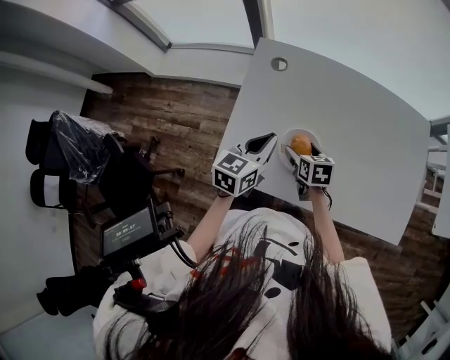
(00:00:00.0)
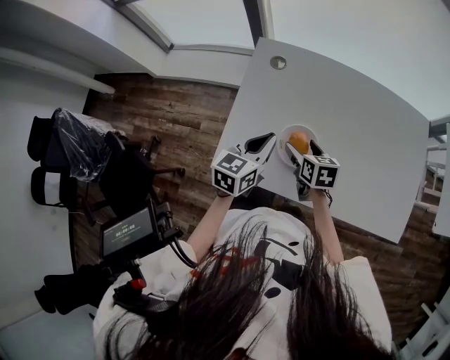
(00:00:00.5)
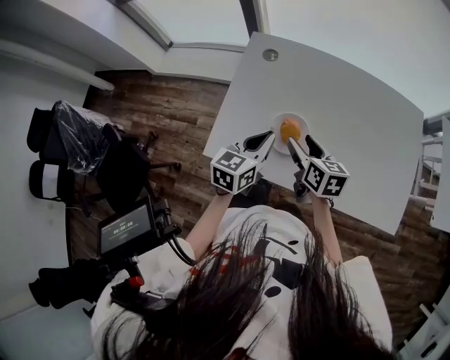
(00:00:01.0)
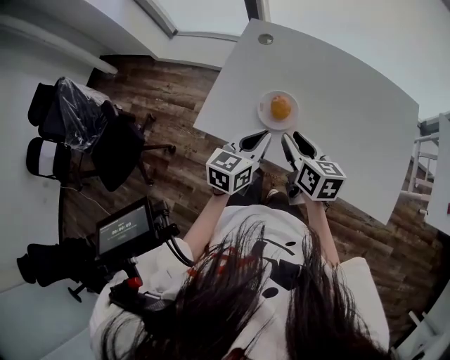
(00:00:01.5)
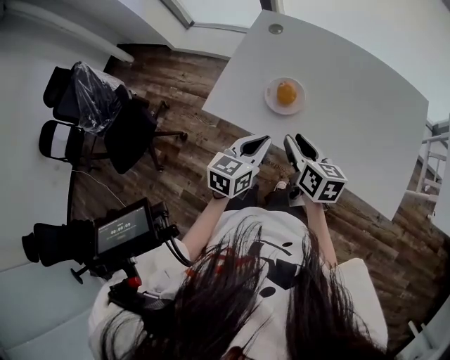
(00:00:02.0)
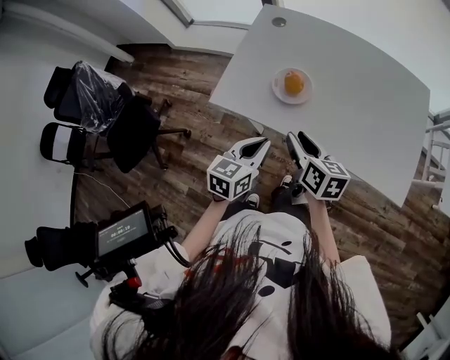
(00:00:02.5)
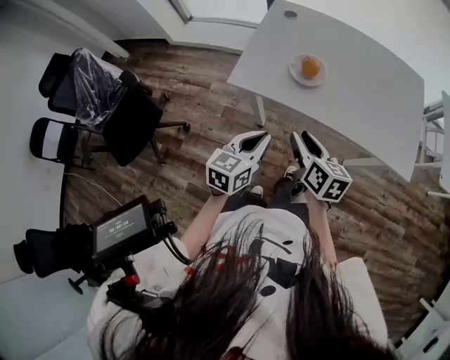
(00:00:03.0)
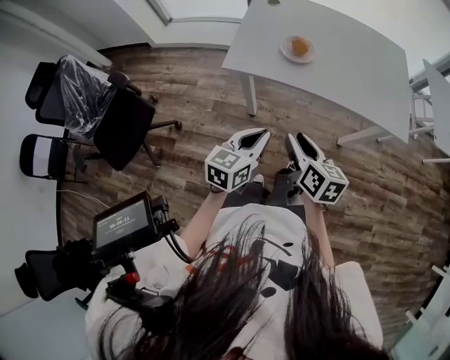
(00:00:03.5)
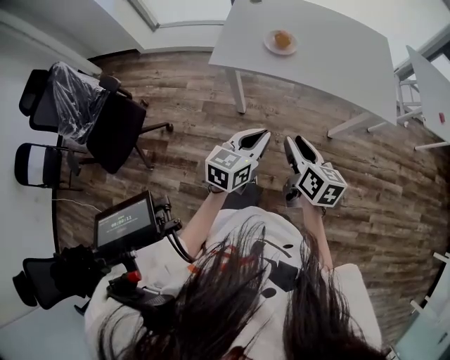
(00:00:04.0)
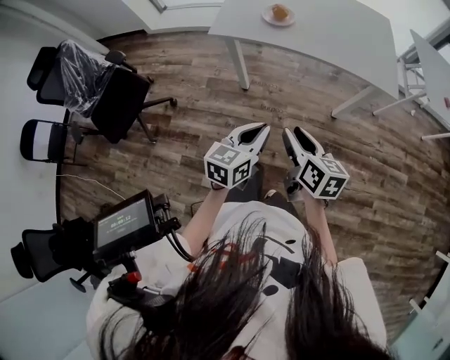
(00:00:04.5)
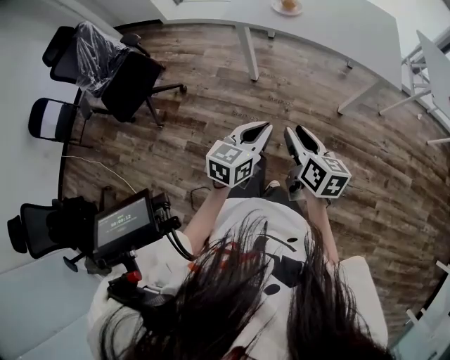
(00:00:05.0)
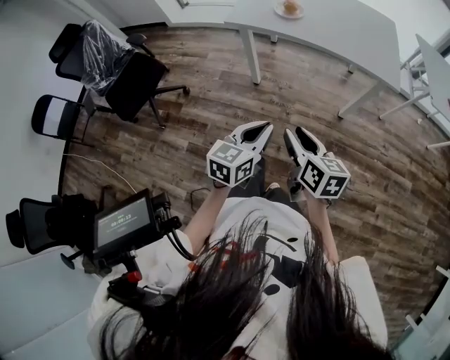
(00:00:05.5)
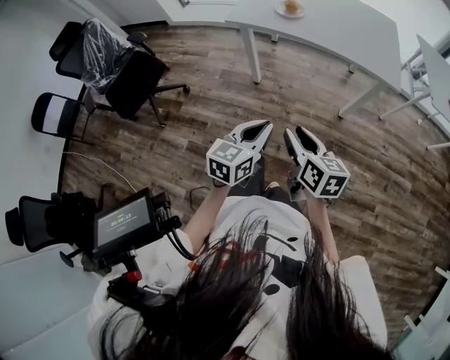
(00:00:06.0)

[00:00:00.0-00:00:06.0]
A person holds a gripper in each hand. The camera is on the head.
00:00:00.0 to 00:00:02.0: The right gripper shifts some 20 cm backward and upward, turns by approximately 30 degrees, and closes its fingers. The left gripper travels backward by approximately 20 cm.
00:00:02.0 to 00:00:04.0: The two grippers go roughly 30 cm backward.
00:00:04.0 to 00:00:06.0: Both grippers move backward, approximately 20 cm.

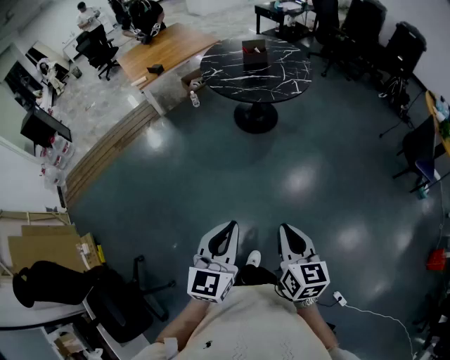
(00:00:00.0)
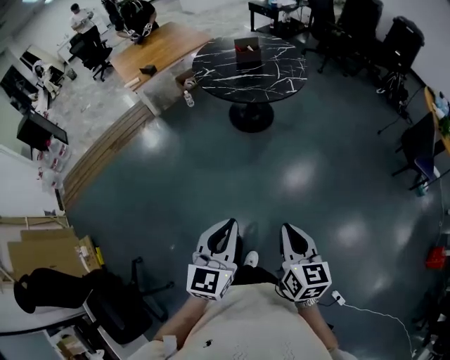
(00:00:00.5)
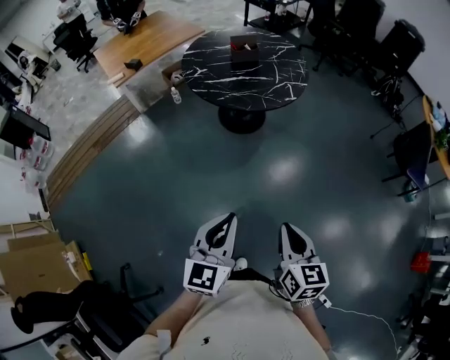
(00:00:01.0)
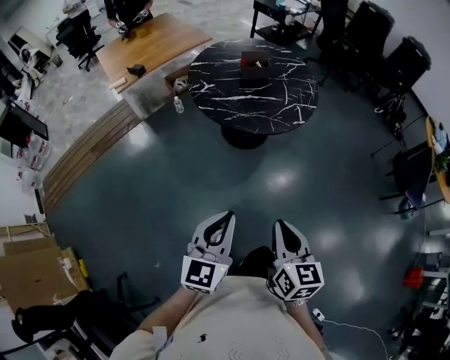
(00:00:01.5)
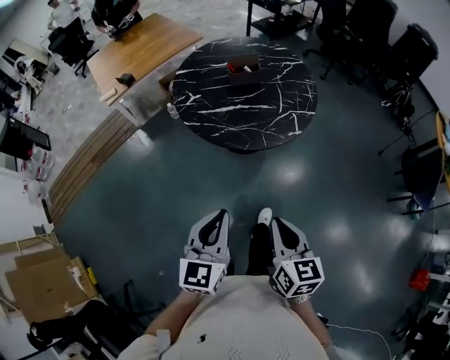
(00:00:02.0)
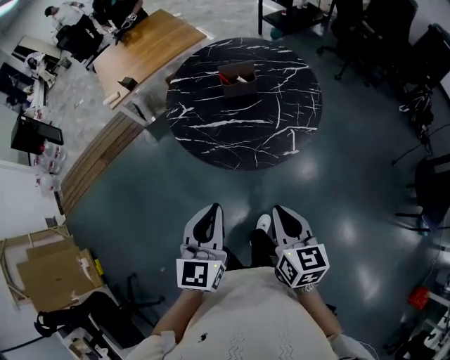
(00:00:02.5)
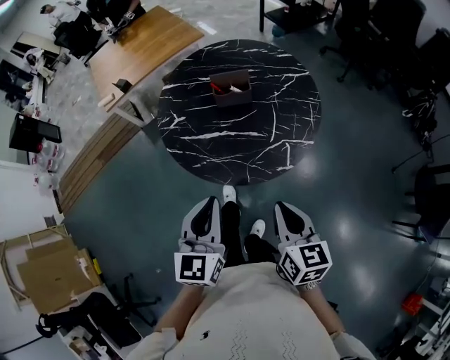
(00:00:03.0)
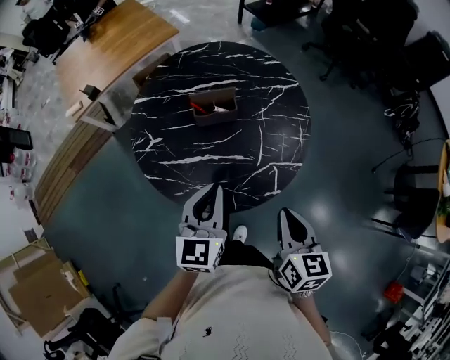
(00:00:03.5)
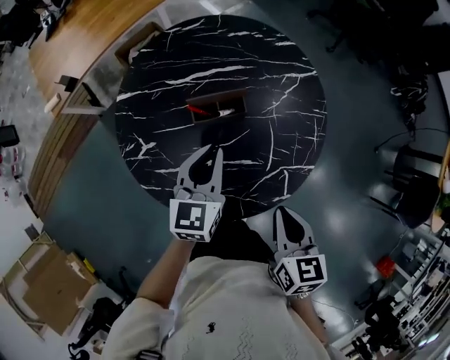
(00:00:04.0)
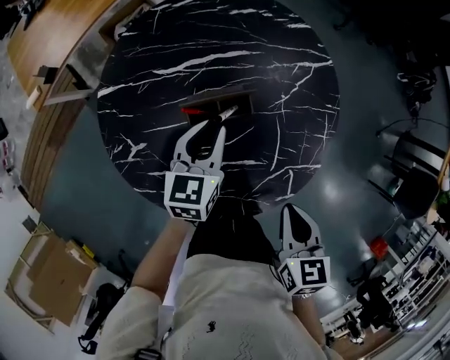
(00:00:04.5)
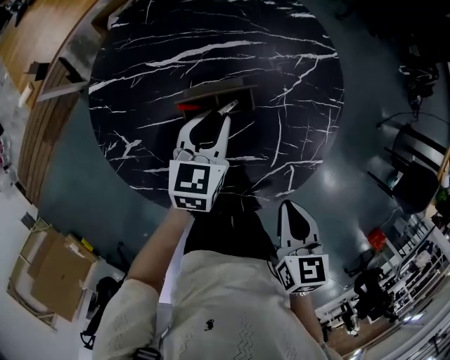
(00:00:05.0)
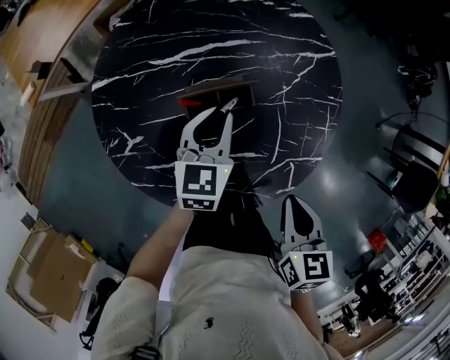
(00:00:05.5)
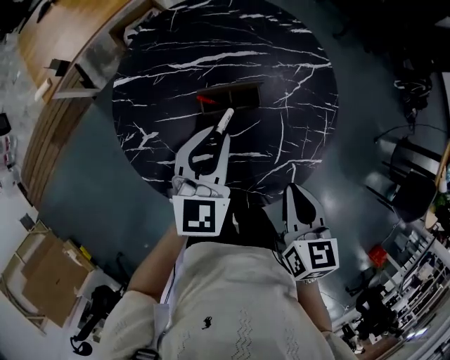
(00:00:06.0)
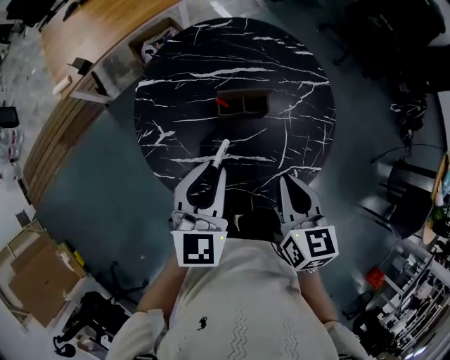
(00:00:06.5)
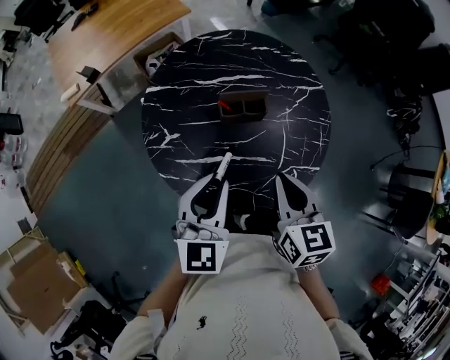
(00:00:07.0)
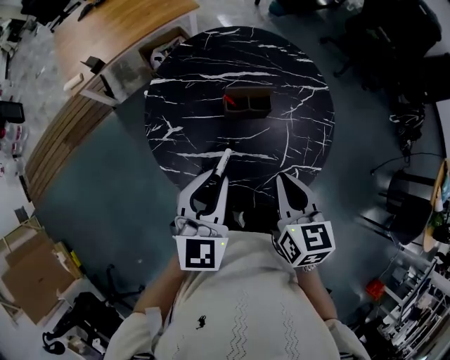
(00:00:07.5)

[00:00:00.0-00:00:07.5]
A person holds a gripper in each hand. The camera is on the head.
00:00:00.0 to 00:00:02.0: Both grippers are carried forward, approximately 40 cm.
00:00:02.0 to 00:00:04.0: The pair of grippers is taken forward, roughly 50 cm.
00:00:04.0 to 00:00:05.5: The left gripper travels downward and forward by roughly 15 cm. The right gripper is displaced forward and downward by about 5 cm.
00:00:05.5 to 00:00:07.5: The right gripper shifts some 15 cm upward and to the left, and swivels some 20 degrees. The left gripper travels backward, upward and to the left by roughly 30 cm, and turns by some 30 degrees.

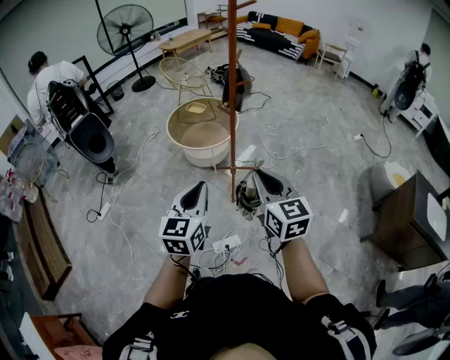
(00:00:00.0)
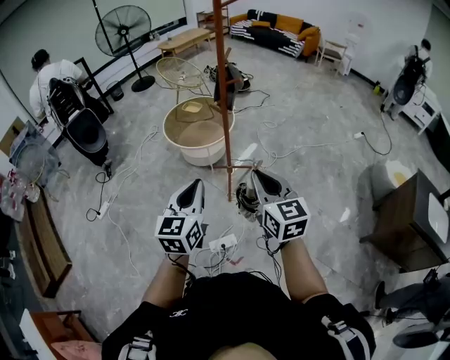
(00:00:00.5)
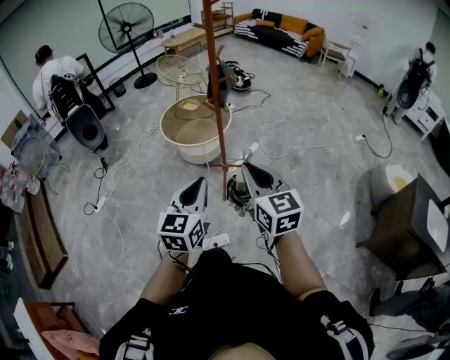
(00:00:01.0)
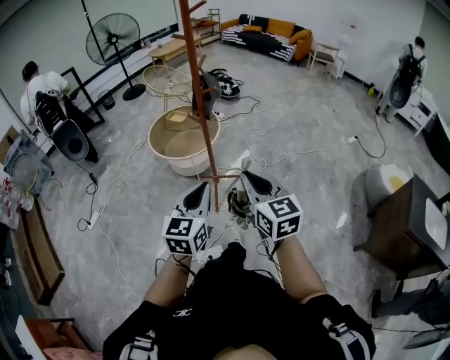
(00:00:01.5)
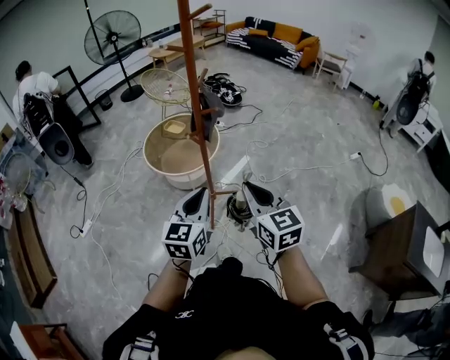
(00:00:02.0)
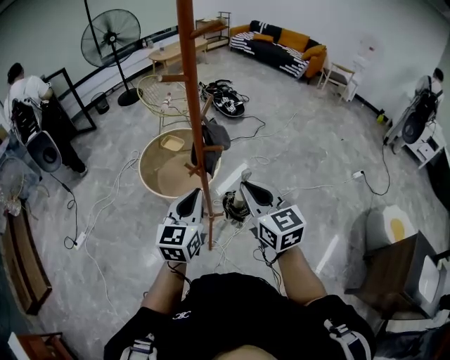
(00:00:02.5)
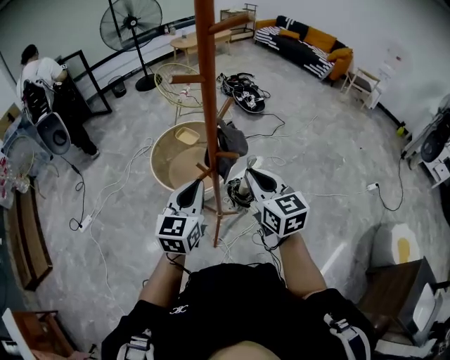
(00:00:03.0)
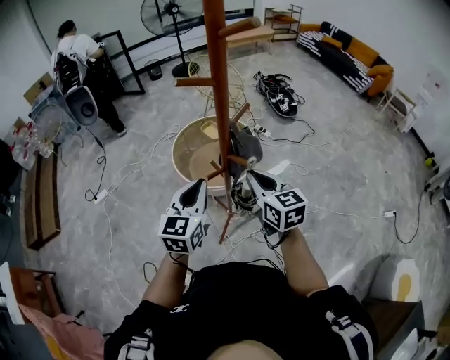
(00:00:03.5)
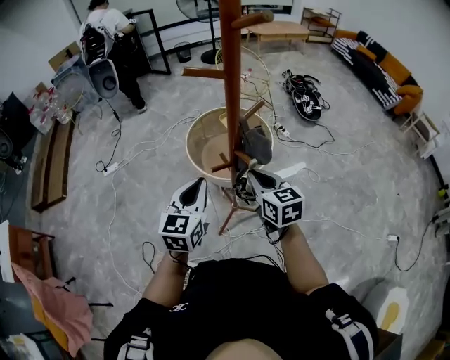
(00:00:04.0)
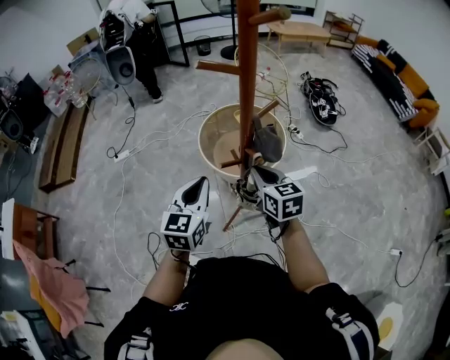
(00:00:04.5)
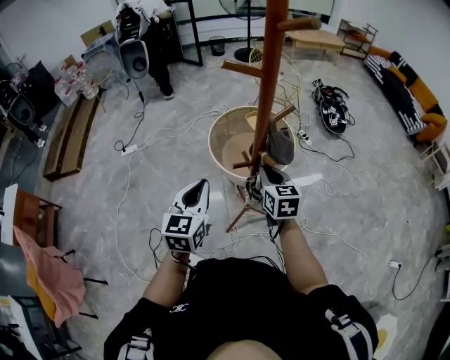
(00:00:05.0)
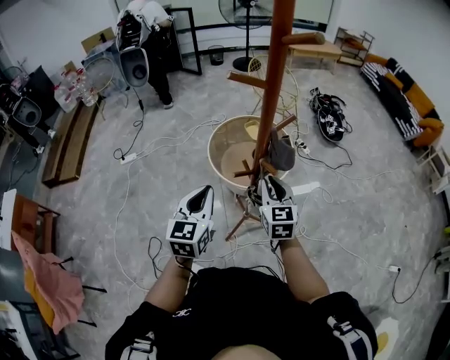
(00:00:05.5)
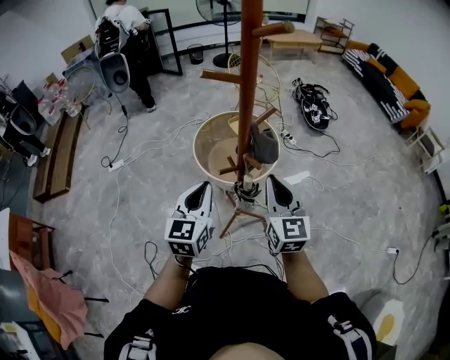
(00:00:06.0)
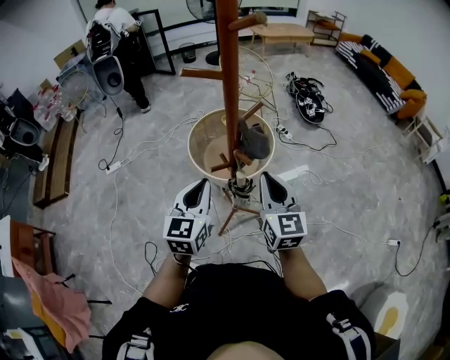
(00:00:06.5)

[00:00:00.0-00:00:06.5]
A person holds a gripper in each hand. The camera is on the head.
00:00:00.0 to 00:00:02.0: Both grippers move forward and to the right, roughly 30 cm.
00:00:02.0 to 00:00:04.5: The left gripper moves about 30 cm, and changes its angle by some 40 degrees; the right gripper ends up about 40 cm from where it was, and turns by approximately 40 degrees.
00:00:04.5 to 00:00:06.5: The right gripper goes some 10 cm upward, backward and to the right, and changes its angle by some 30 degrees.

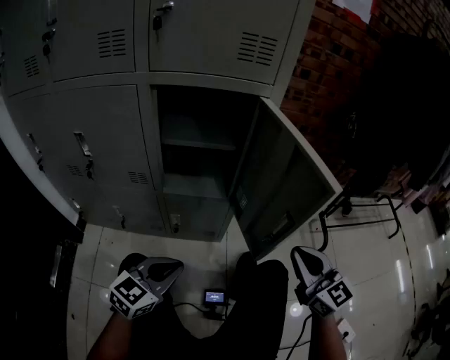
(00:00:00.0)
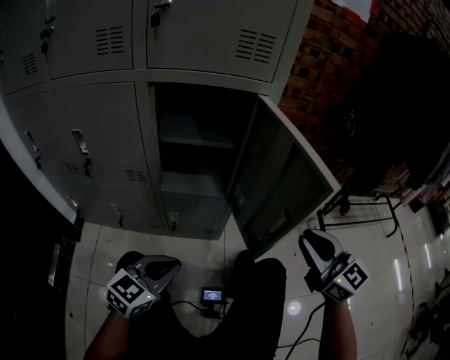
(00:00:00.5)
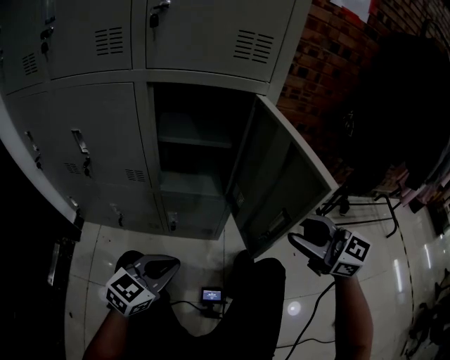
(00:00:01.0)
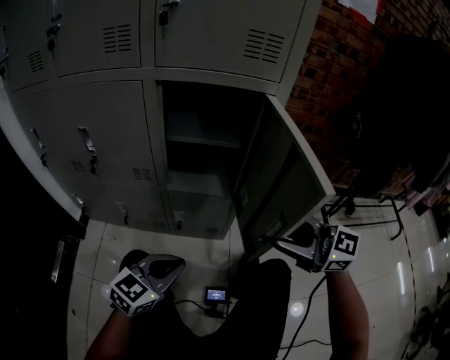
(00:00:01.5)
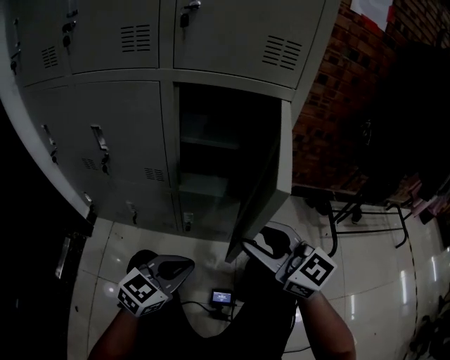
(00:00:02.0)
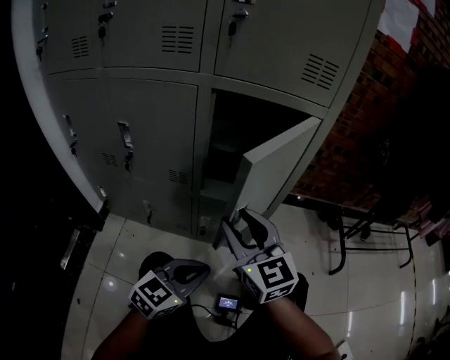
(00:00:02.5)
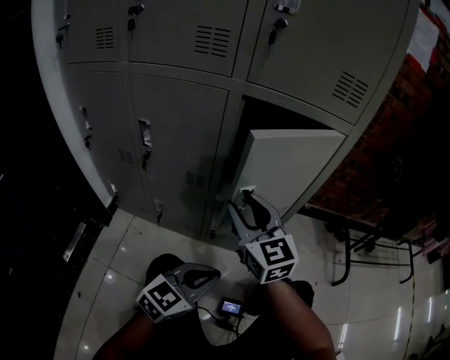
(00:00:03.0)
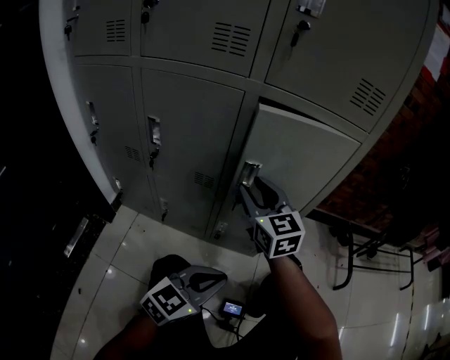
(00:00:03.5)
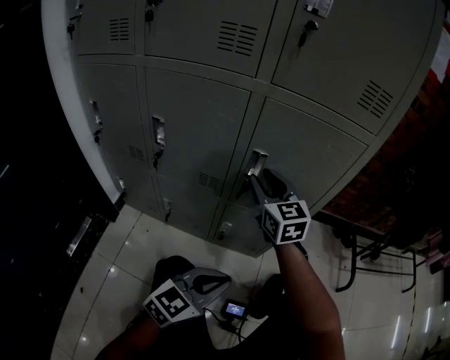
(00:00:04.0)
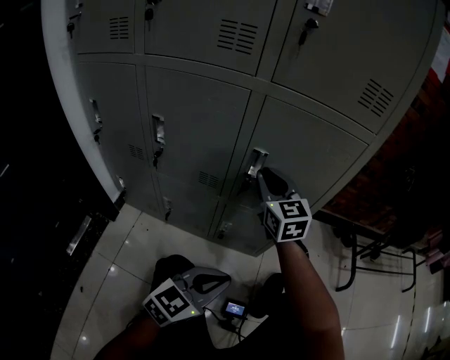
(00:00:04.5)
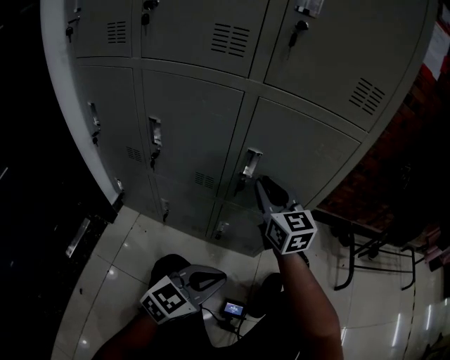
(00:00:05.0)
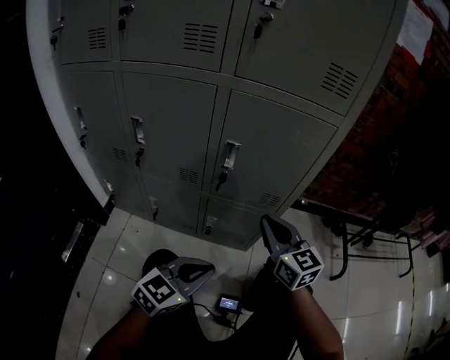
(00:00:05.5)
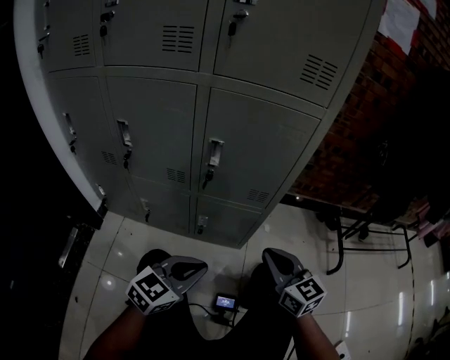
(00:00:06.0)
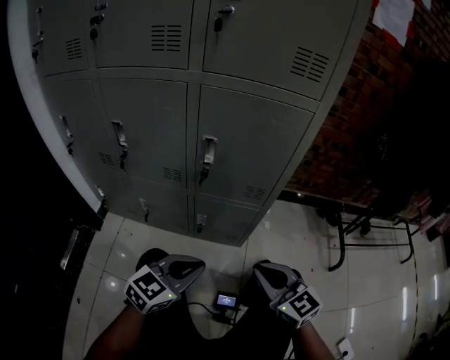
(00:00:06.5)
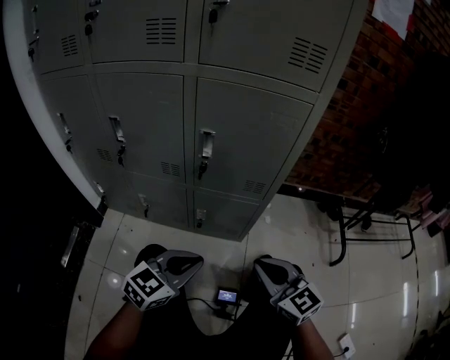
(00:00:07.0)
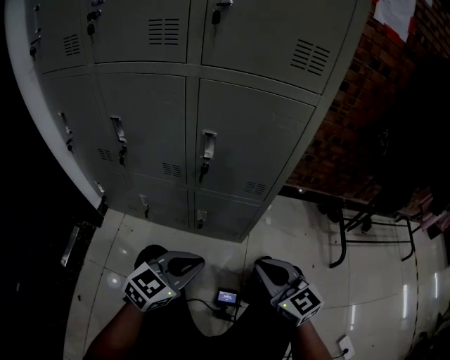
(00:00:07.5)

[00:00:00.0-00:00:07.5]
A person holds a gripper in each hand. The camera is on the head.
00:00:00.0 to 00:00:02.0: The right gripper goes approximately 15 cm to the left, turns by some 30 degrees, and opens its fingers.
00:00:02.0 to 00:00:04.0: The right gripper is displaced forward and to the left by roughly 25 cm, and turns by about 20 degrees.
00:00:04.0 to 00:00:05.5: The right gripper shifts about 15 cm to the right and backward, and closes its fingers.
00:00:05.5 to 00:00:07.5: The right gripper travels backward by about 15 cm.
